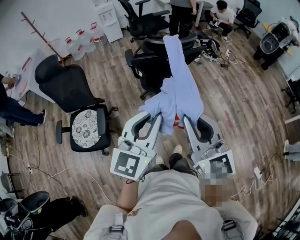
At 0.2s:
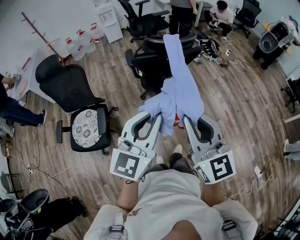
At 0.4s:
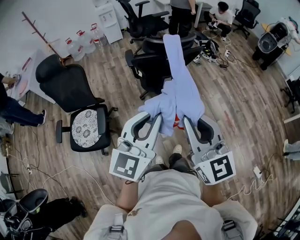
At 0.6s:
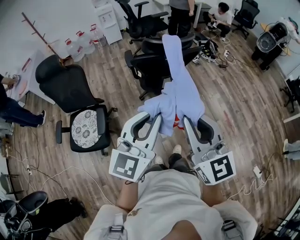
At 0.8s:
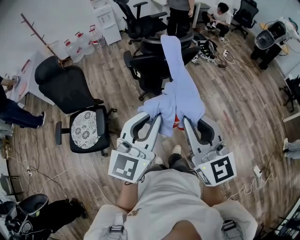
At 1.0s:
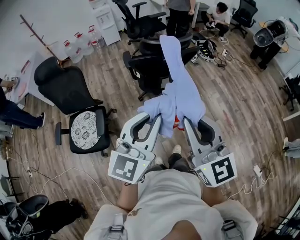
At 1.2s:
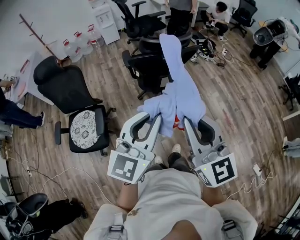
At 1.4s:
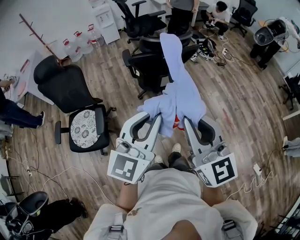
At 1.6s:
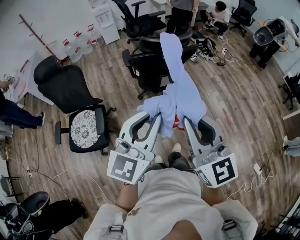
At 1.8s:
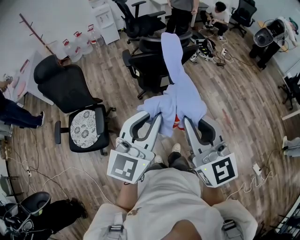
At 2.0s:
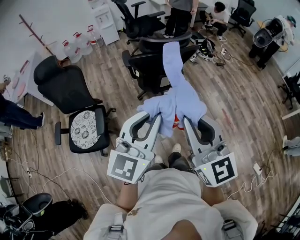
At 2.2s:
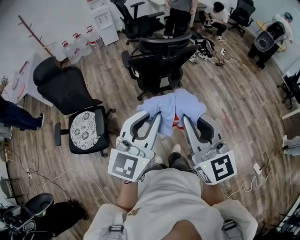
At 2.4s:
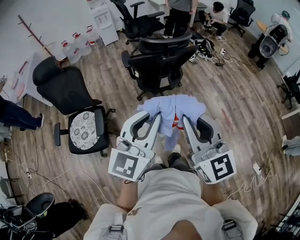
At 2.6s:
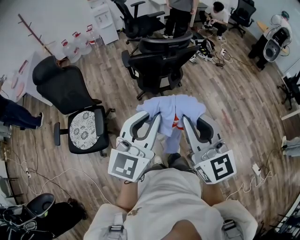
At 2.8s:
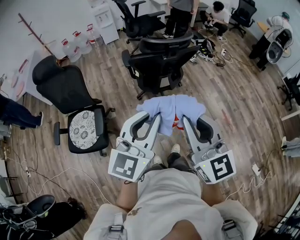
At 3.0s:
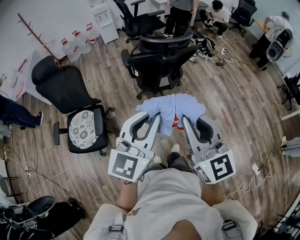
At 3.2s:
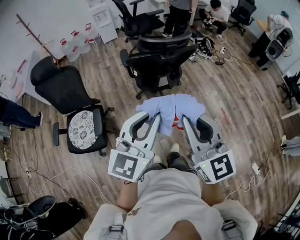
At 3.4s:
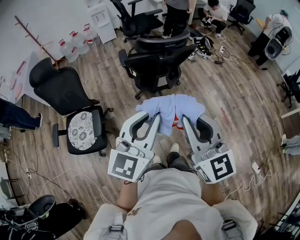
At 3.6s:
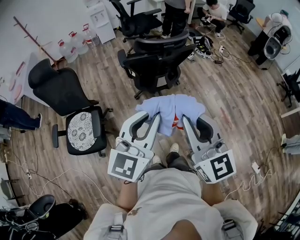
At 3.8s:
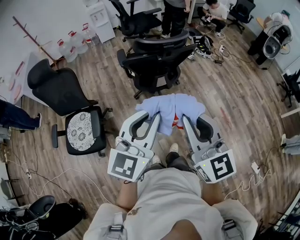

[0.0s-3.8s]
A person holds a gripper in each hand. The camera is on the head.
0.0s to 3.8s: The grippers stay close to where they were, moving slightly.

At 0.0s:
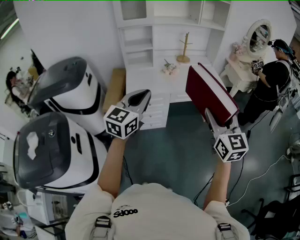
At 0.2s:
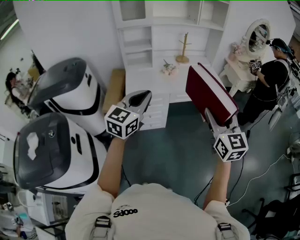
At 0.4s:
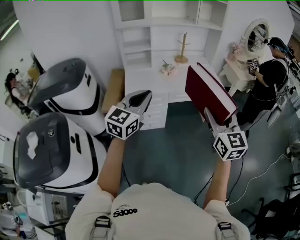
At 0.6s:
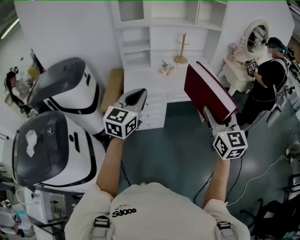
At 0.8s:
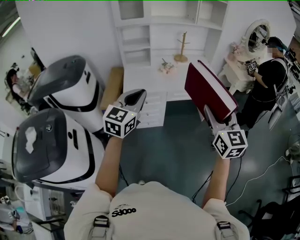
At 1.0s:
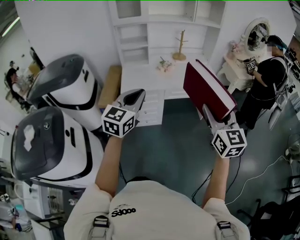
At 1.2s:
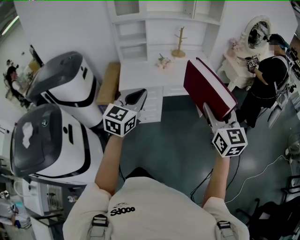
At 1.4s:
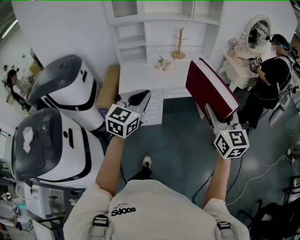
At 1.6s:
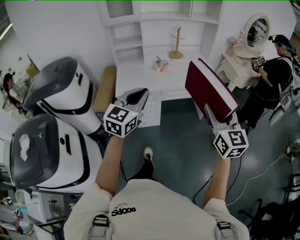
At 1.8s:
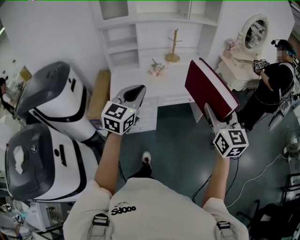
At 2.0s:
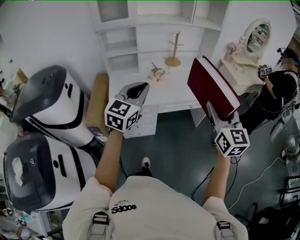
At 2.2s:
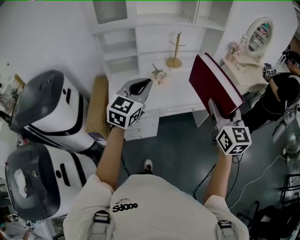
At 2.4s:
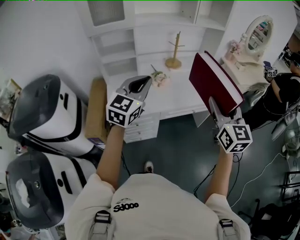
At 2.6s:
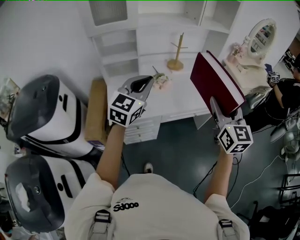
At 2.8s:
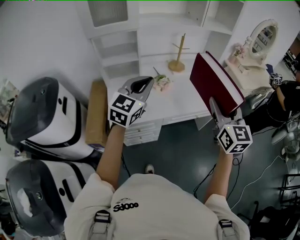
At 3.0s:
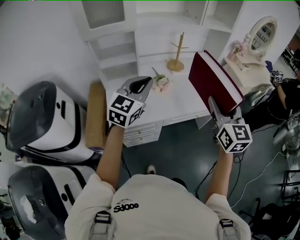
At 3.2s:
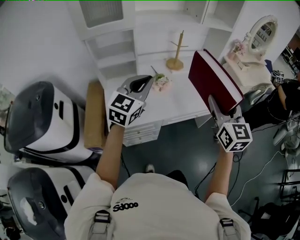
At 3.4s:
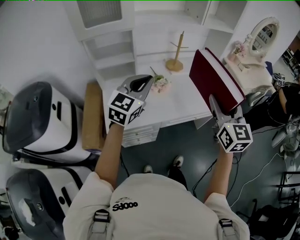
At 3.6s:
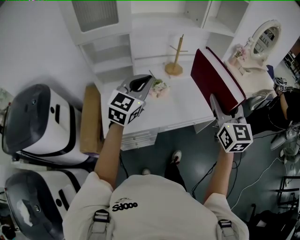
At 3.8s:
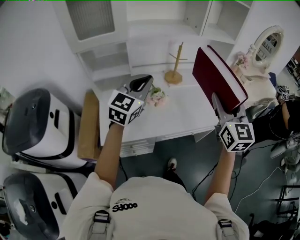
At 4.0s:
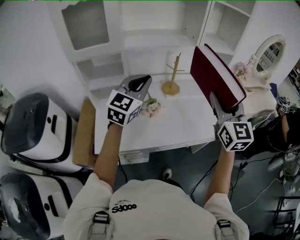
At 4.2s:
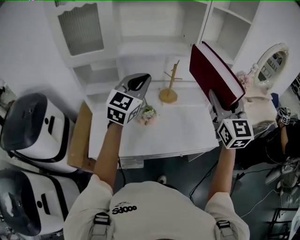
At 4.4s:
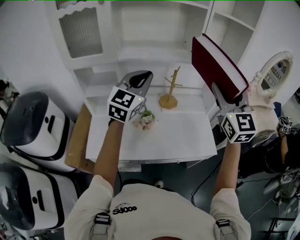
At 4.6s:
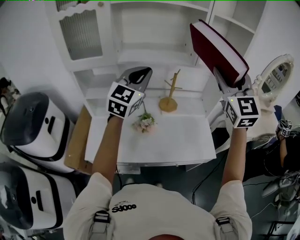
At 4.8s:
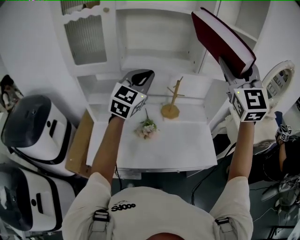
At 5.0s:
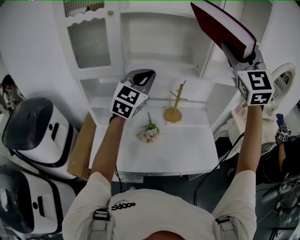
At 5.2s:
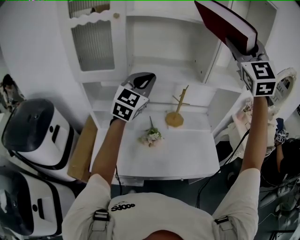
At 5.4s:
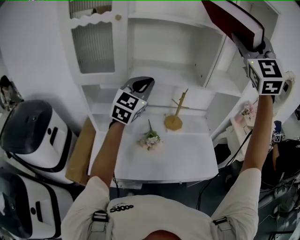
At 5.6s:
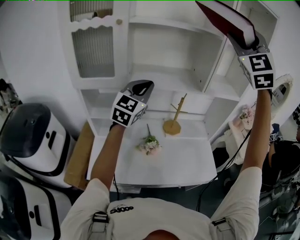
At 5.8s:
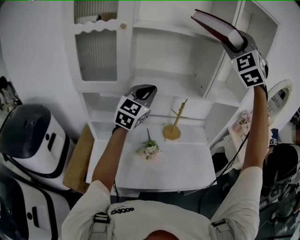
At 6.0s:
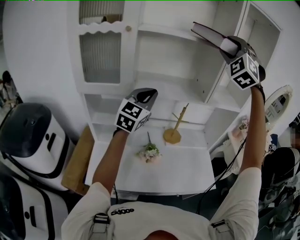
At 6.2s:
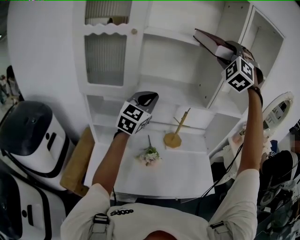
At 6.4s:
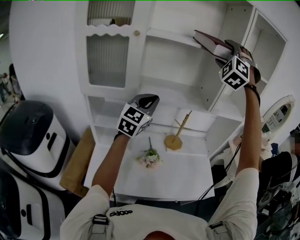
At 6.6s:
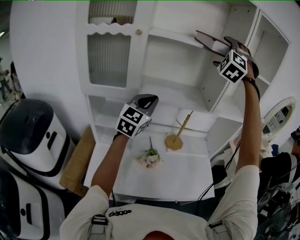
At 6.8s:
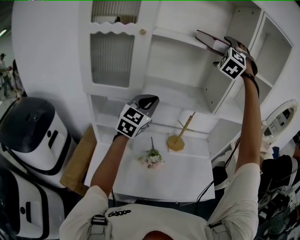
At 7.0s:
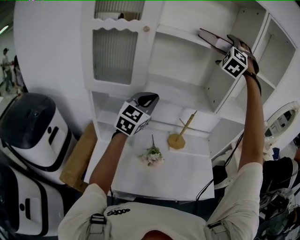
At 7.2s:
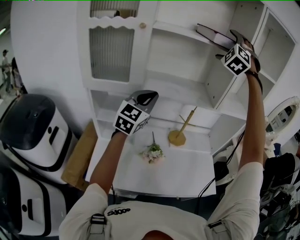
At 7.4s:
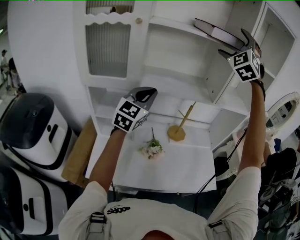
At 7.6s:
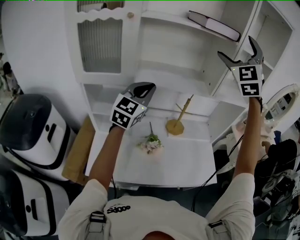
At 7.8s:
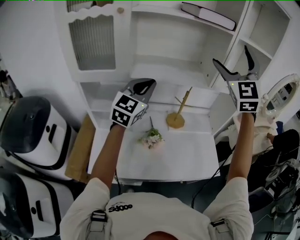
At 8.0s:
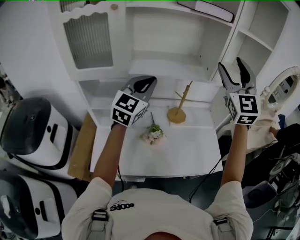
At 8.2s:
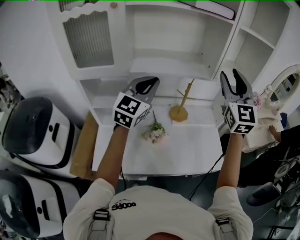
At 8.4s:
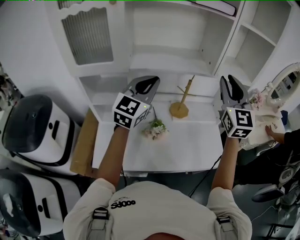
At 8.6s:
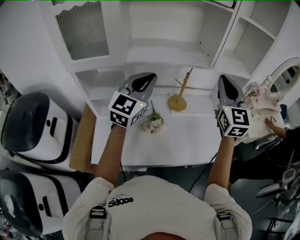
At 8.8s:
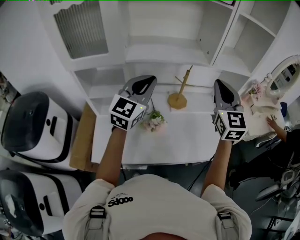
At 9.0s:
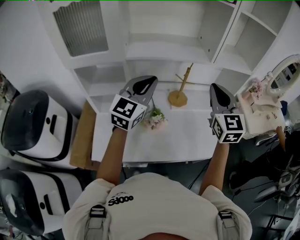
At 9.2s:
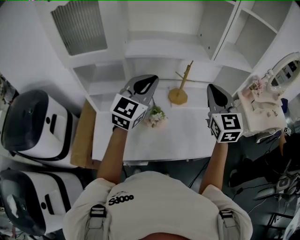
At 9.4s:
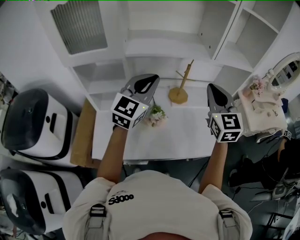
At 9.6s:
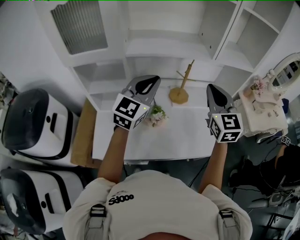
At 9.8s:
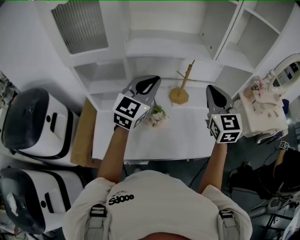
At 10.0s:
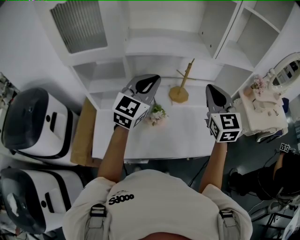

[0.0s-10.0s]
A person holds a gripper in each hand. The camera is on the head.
0.0s to 1.4s: The grippers both shift to the right by approximately 10 cm.
1.4s to 2.8s: The two grippers go some 30 cm forward.
2.8s to 4.2s: Both grippers move forward, approximately 25 cm.
4.2s to 5.8s: The left gripper shifts roughly 10 cm forward and upward, while the right gripper moves upward and forward, about 35 cm, and twists about 60 degrees counterclockwise, seen from behind.
5.8s to 7.2s: The right gripper is displaced forward and to the left by some 15 cm, and opens; the left gripper changes place by approximately 5 cm.
7.2s to 8.6s: The right gripper goes roughly 30 cm downward, backward and to the right, rotates around the line of its fingers by some 60 degrees, clockwise from behind, and closes up, while the left gripper goes about 5 cm to the right.
8.6s to 10.0s: The right gripper goes roughly 10 cm downward.

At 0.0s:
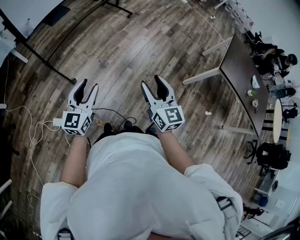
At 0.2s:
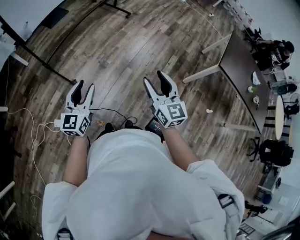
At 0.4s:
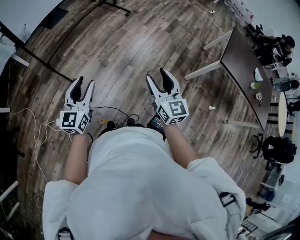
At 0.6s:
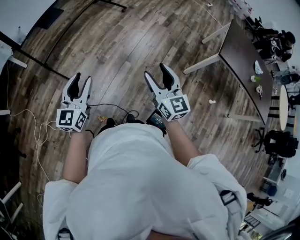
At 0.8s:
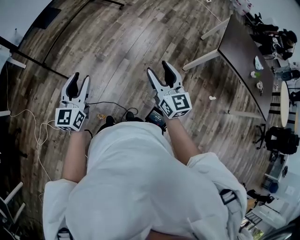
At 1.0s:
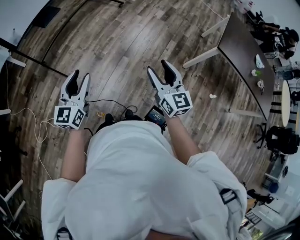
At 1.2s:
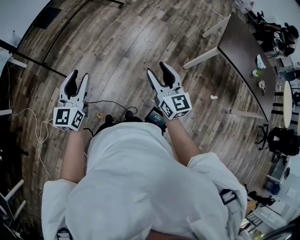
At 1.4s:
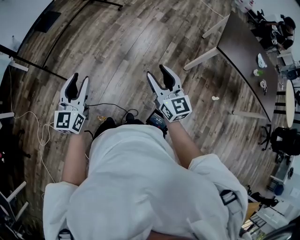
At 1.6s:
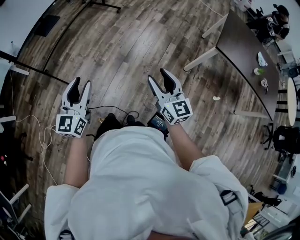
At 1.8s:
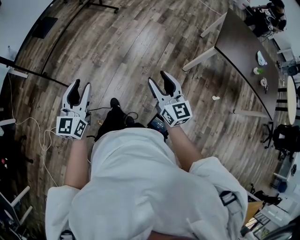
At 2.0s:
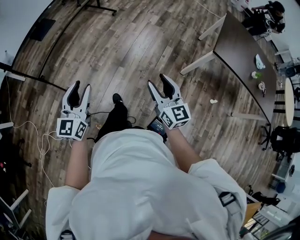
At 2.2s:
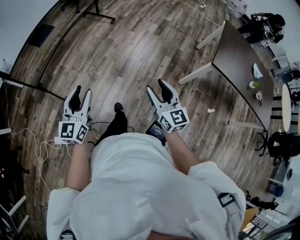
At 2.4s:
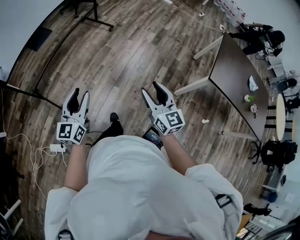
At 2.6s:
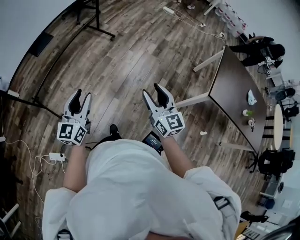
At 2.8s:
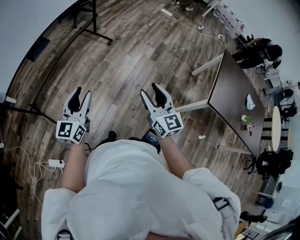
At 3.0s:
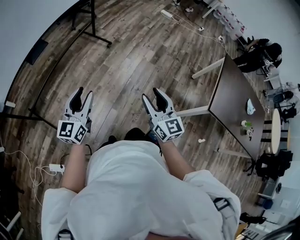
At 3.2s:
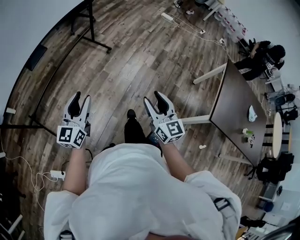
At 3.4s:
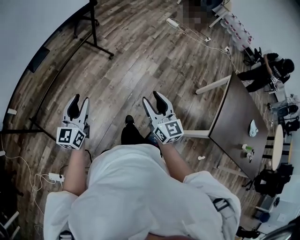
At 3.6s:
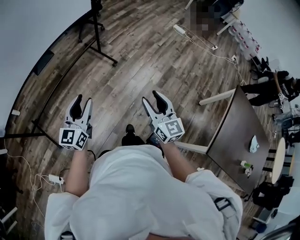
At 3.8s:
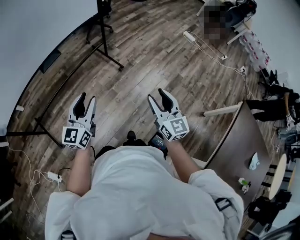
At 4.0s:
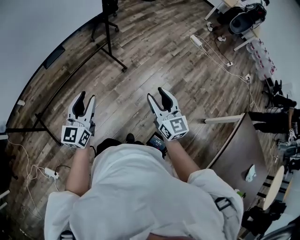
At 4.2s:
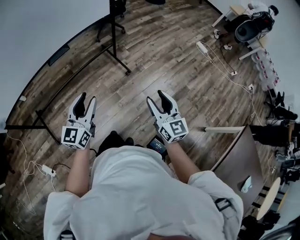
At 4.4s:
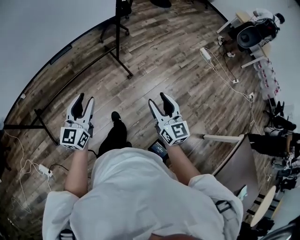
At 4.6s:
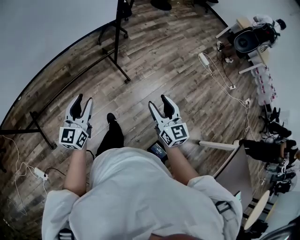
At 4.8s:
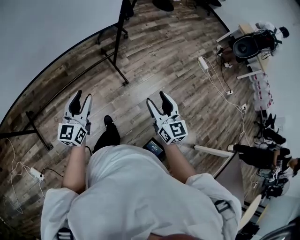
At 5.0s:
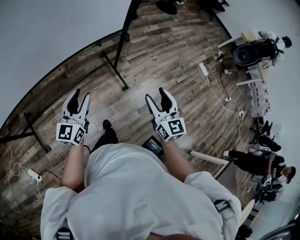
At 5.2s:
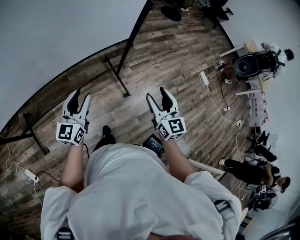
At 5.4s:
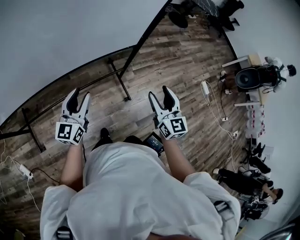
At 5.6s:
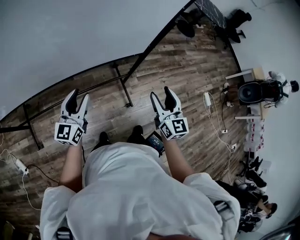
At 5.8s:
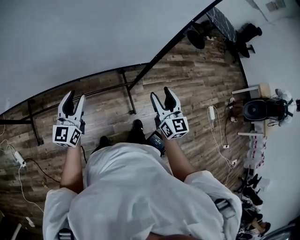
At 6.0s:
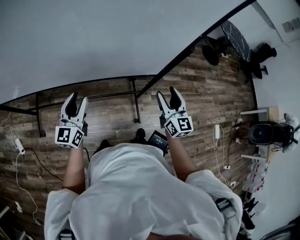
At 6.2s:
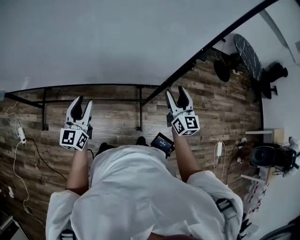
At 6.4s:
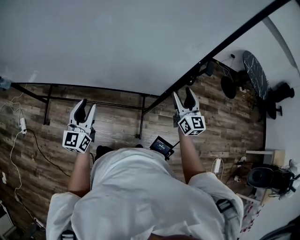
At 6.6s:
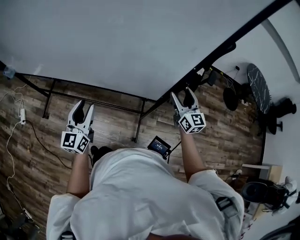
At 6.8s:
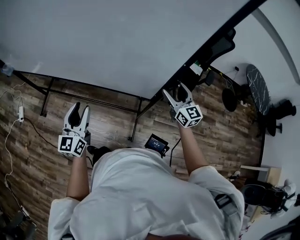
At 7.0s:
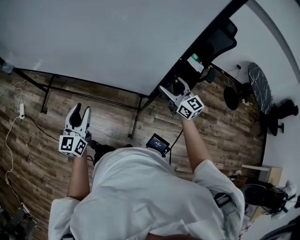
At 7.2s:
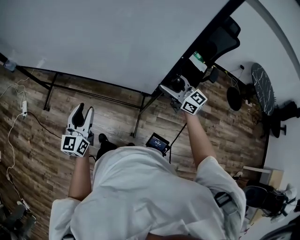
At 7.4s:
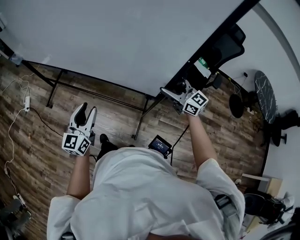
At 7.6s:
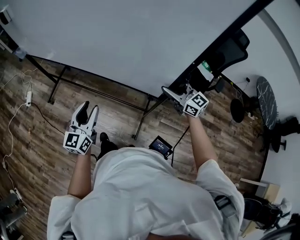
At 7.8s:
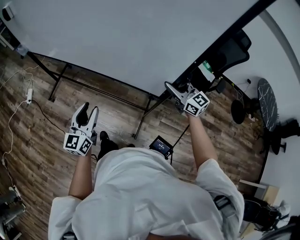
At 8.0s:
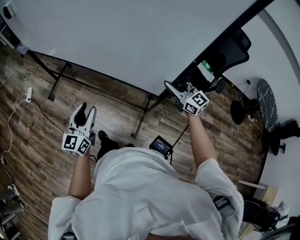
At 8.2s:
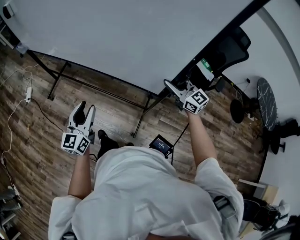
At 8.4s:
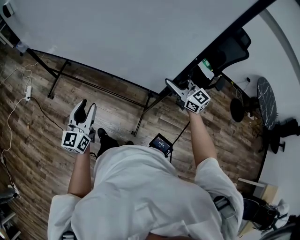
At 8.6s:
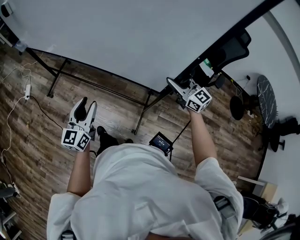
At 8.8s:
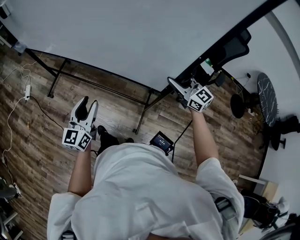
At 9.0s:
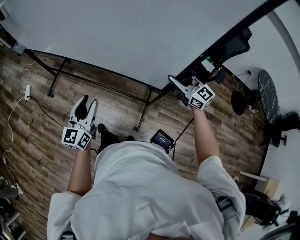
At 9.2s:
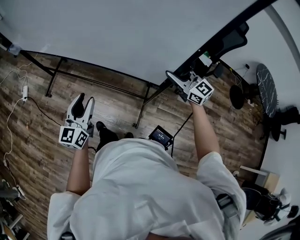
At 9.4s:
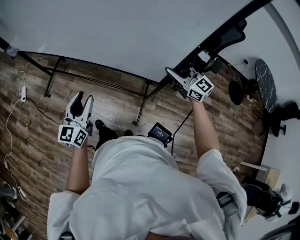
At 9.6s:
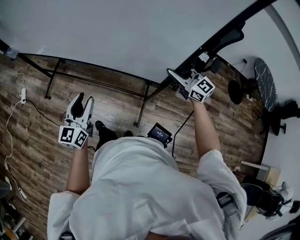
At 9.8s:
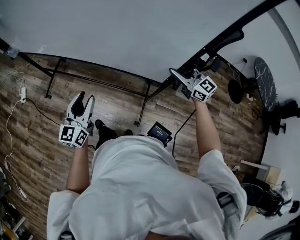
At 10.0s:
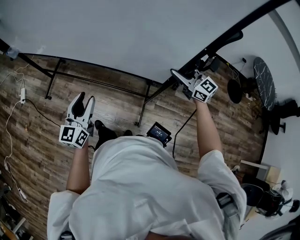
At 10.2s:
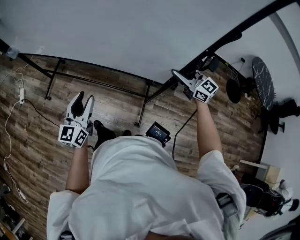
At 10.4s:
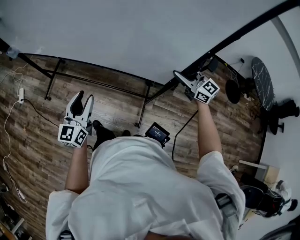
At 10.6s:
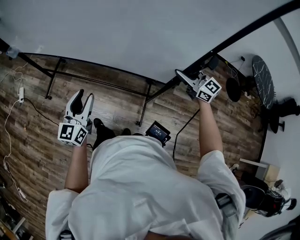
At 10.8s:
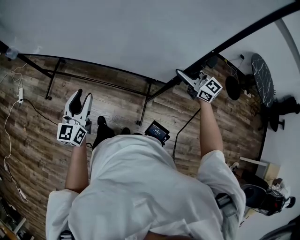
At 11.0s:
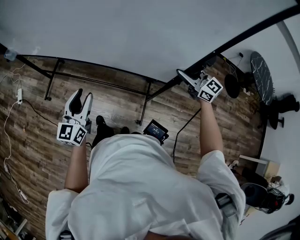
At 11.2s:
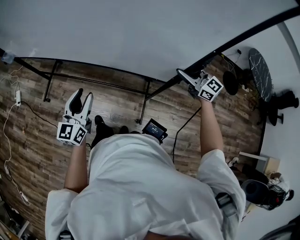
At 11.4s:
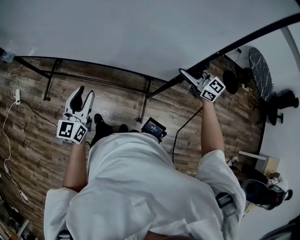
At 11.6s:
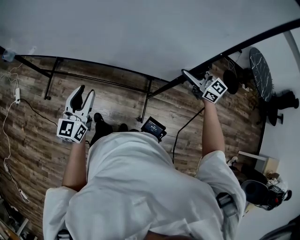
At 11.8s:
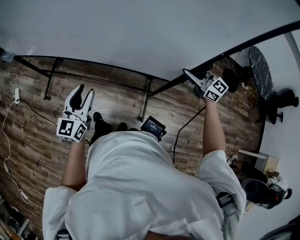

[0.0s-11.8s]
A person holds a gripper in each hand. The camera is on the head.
0.0s to 1.4s: The grippers both shift to the right by approximately 15 cm.
1.4s to 3.0s: Both grippers are carried forward, roughly 40 cm.
3.0s to 4.4s: Both grippers are carried forward, about 50 cm. The right gripper turns by roughly 20 degrees. The left gripper rotates some 20 degrees.
4.4s to 6.0s: The two grippers travel together, approximately 50 cm. The left gripper turns by approximately 30 degrees; the right gripper swivels some 30 degrees.
6.0s to 7.4s: The left gripper changes place by about 20 cm, and swivels roughly 20 degrees, while the right gripper shifts by about 15 cm, and swivels about 60 degrees.
7.4s to 8.8s: The right gripper closes.
8.8s to 10.4s: The right gripper is displaced to the right by roughly 5 cm.
10.4s to 11.8s: The right gripper goes roughly 5 cm to the right.
